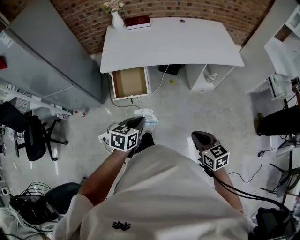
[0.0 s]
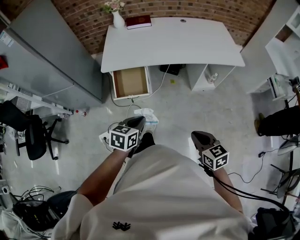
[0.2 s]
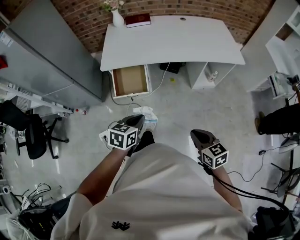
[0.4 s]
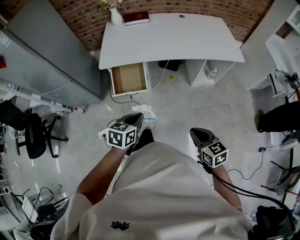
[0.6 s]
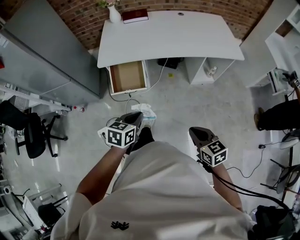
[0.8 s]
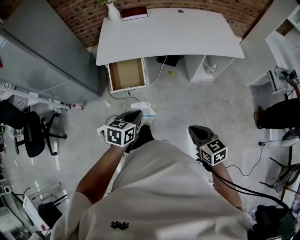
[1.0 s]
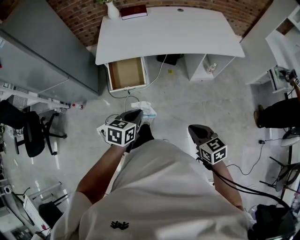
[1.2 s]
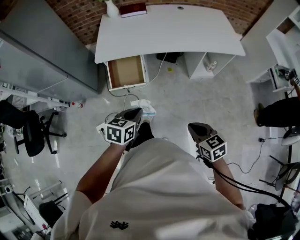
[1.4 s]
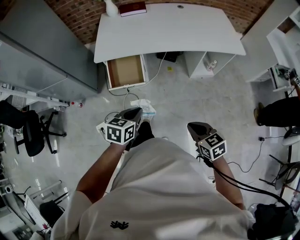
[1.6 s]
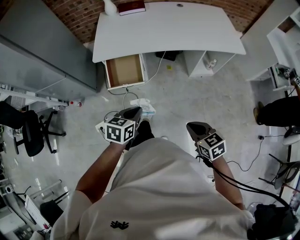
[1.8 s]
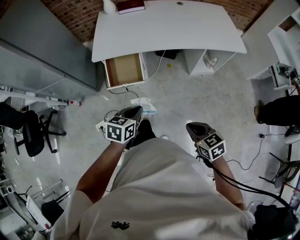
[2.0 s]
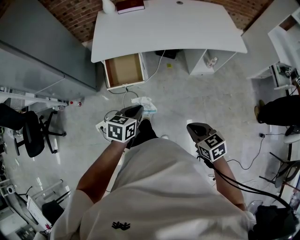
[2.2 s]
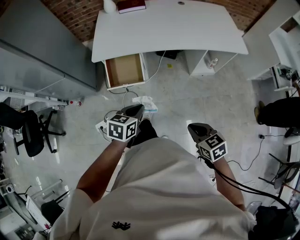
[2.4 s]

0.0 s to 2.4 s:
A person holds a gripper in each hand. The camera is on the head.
0.0 to 1.2 s: The grippers stay close to where they were, moving slightly.
1.2 to 2.4 s: The left gripper is displaced forward by roughly 5 cm.

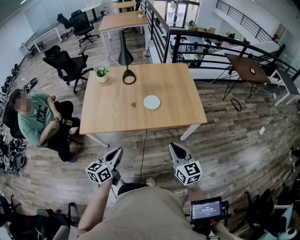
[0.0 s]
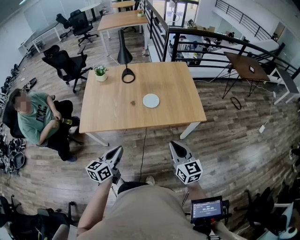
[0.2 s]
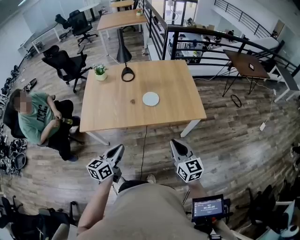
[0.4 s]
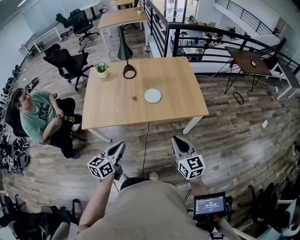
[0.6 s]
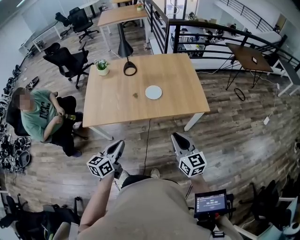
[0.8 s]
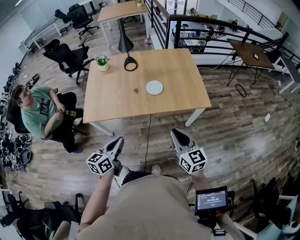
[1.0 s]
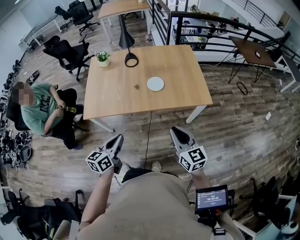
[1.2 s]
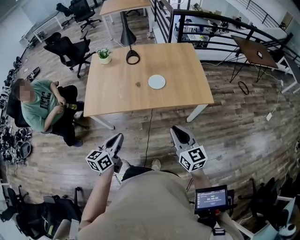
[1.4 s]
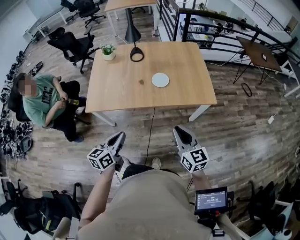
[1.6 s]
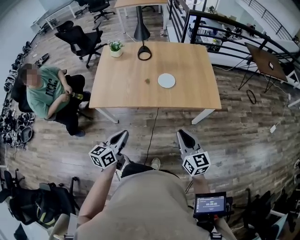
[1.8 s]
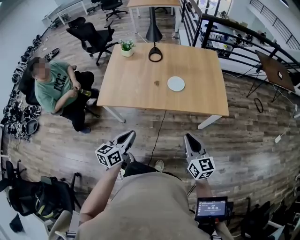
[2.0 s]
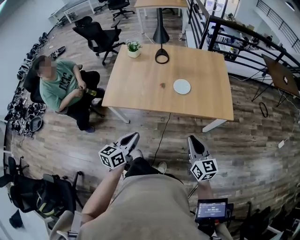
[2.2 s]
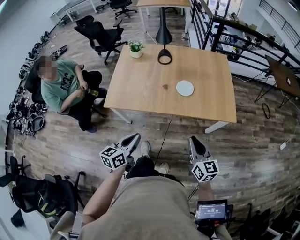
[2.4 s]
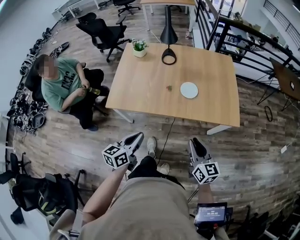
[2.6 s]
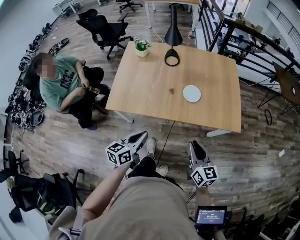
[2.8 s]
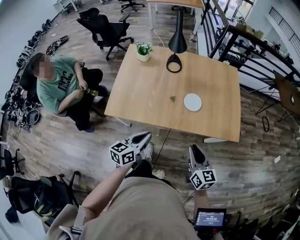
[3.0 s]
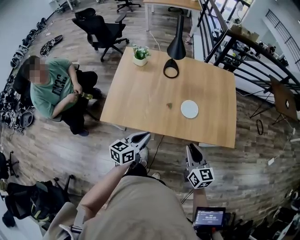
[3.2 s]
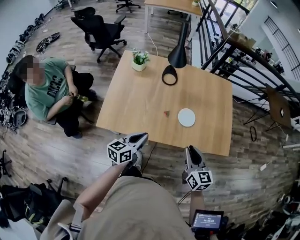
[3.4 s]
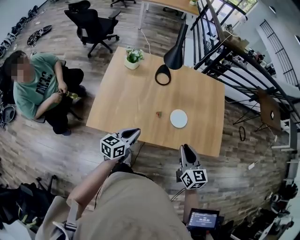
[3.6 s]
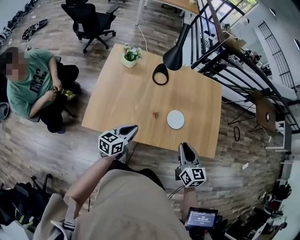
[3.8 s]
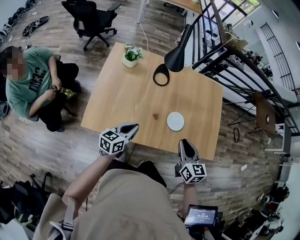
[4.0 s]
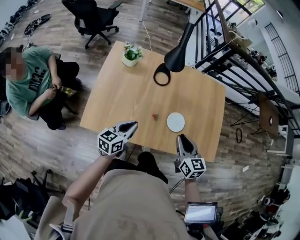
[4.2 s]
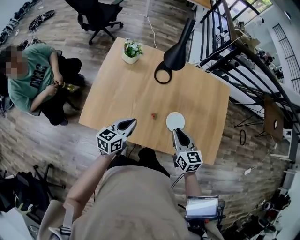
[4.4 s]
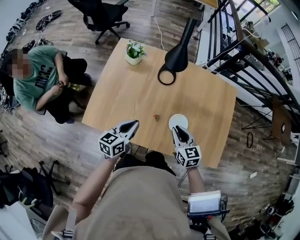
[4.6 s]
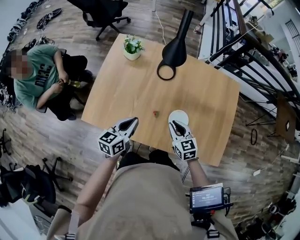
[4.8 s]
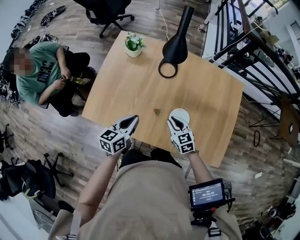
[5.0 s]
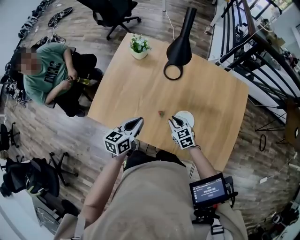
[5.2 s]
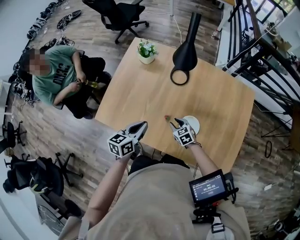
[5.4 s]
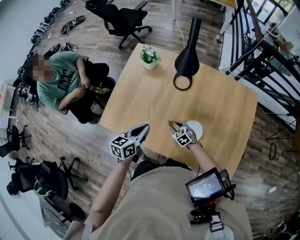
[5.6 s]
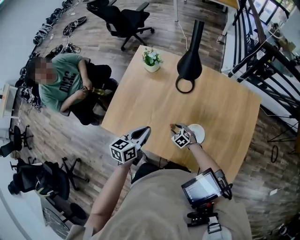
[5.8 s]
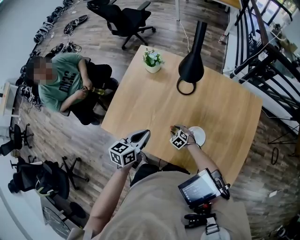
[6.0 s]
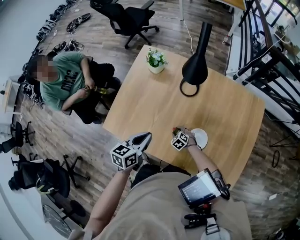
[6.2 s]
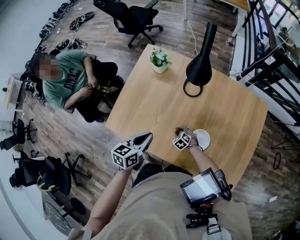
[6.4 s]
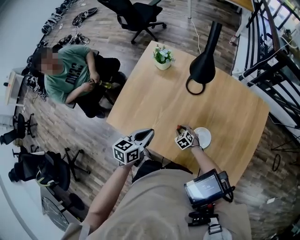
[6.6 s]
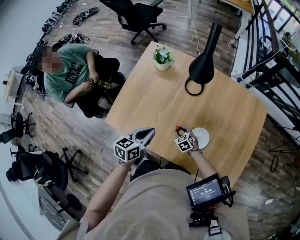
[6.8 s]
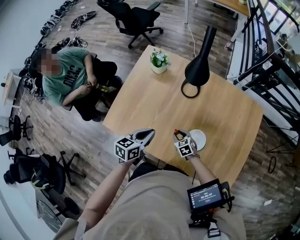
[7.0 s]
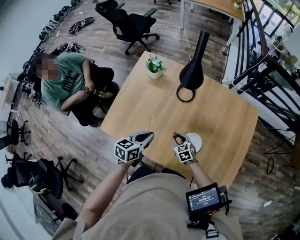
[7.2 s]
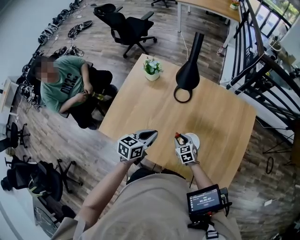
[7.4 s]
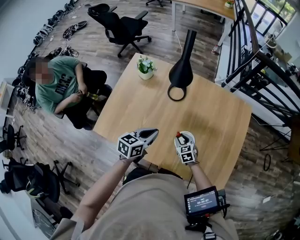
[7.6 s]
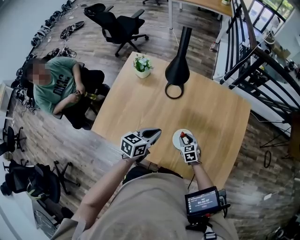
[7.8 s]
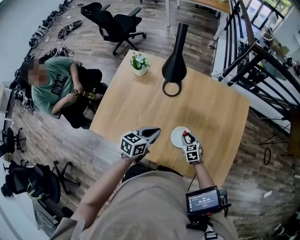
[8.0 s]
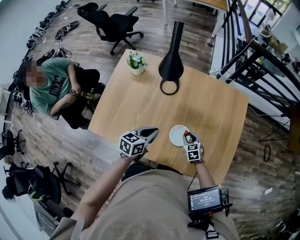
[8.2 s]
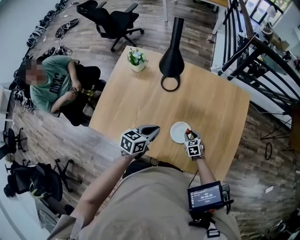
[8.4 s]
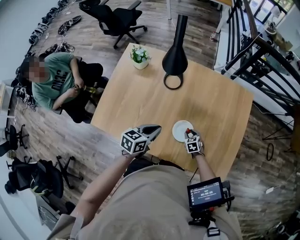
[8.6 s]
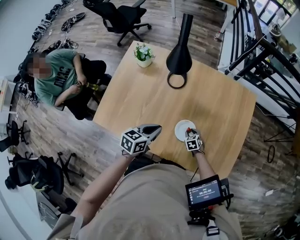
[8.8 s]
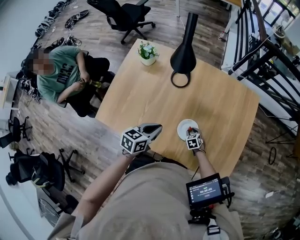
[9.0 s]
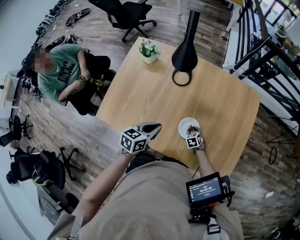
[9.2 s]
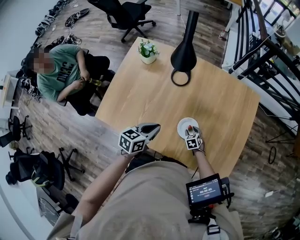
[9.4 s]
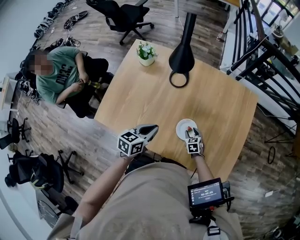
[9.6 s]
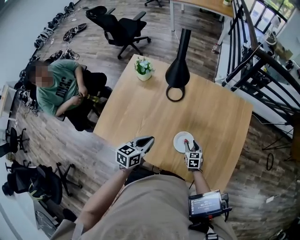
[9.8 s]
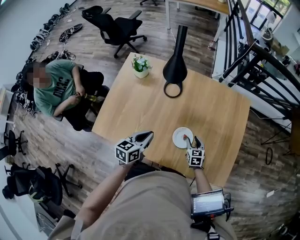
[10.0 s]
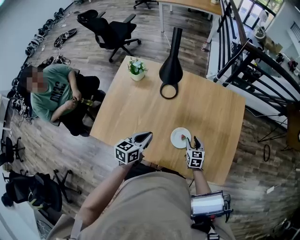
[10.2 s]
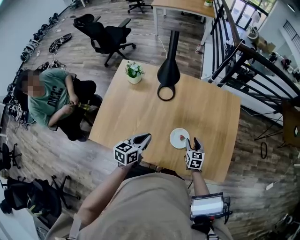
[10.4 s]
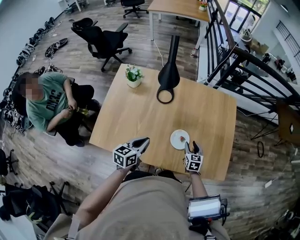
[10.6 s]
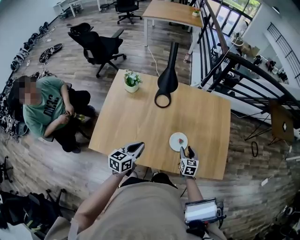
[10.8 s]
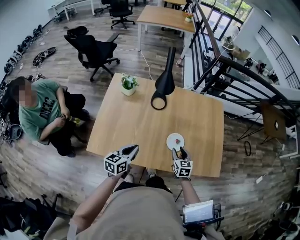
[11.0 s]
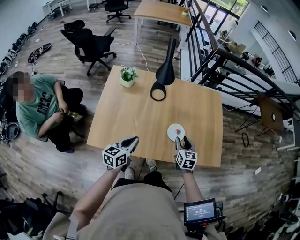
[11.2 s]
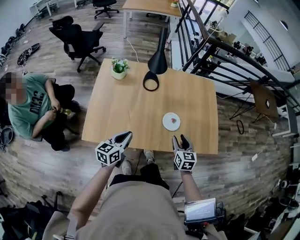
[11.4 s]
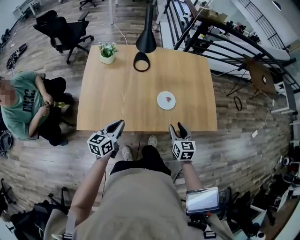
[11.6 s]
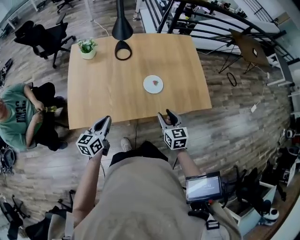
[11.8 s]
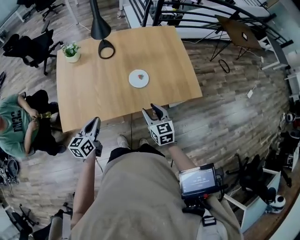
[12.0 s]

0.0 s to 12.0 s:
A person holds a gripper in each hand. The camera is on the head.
0.0 to 1.6 s: The grippers make only small movements.
1.6 to 3.0 s: The right gripper is displaced forward and to the left by approximately 15 cm. The left gripper moves forward, some 15 cm.
3.0 to 4.4 s: The grippers both shift forward by approximately 25 cm.
4.4 to 6.0 s: The right gripper travels downward by approximately 35 cm, tips its fingers downward by roughly 30 degrees, and opens up.
6.0 to 7.6 s: The right gripper travels upward and to the right by some 15 cm, and swivels roughly 30 degrees. The left gripper travels to the right by about 10 cm.
7.6 to 9.0 s: The right gripper moves downward and to the right, about 15 cm.
9.0 to 10.4 s: The right gripper travels upward by some 20 cm, and changes its angle by approximately 40 degrees.
10.4 to 12.0 s: The right gripper moves backward and upward, about 30 cm; the left gripper is displaced backward by approximately 20 cm.

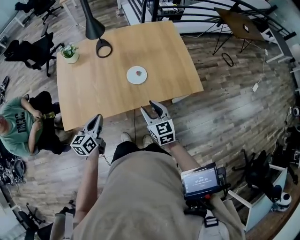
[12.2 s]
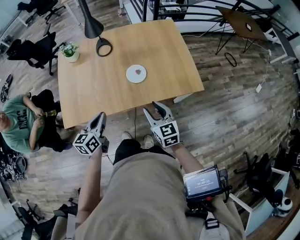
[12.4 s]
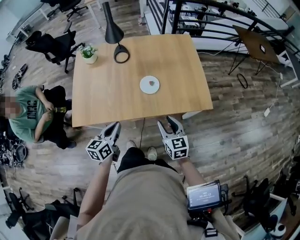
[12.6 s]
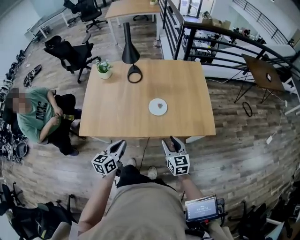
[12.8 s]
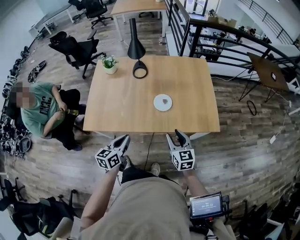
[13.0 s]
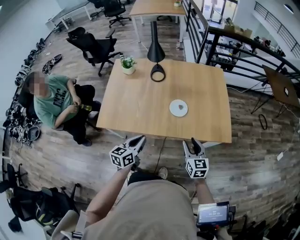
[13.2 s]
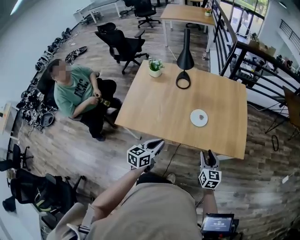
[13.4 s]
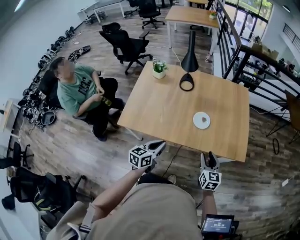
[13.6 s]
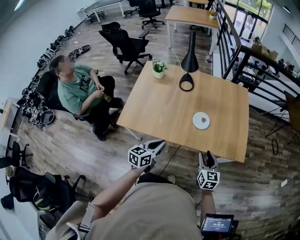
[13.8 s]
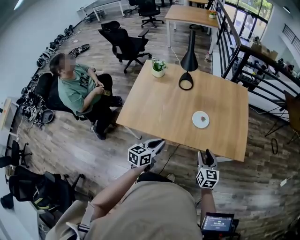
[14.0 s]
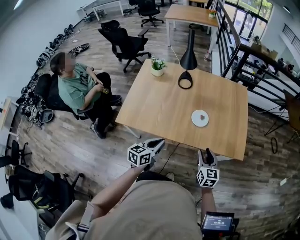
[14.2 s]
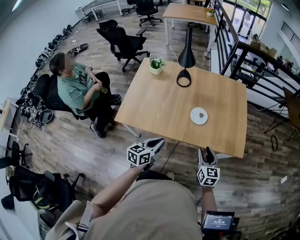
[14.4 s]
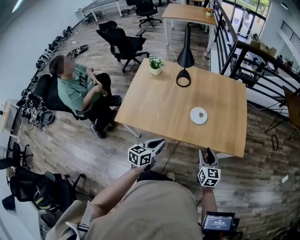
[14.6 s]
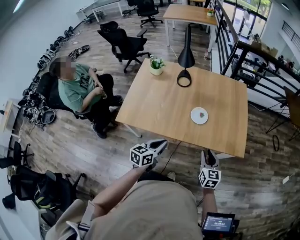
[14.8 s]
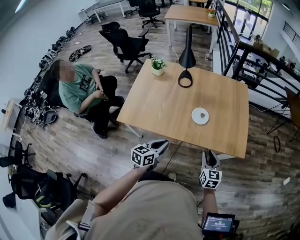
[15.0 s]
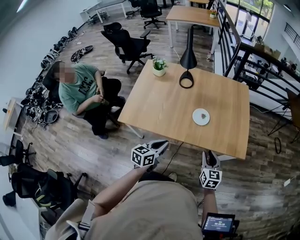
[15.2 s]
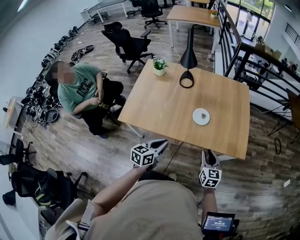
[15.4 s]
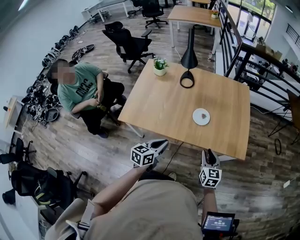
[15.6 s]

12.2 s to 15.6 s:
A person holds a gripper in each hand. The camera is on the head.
12.2 to 13.8 s: The left gripper heads backward, covering some 5 cm.
13.8 to 15.6 s: The grippers make only small movements.

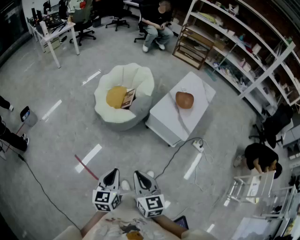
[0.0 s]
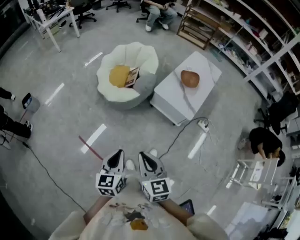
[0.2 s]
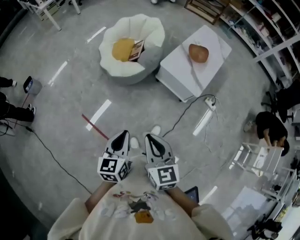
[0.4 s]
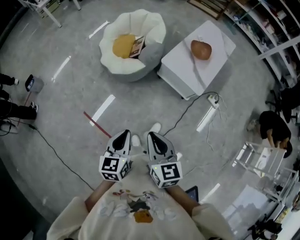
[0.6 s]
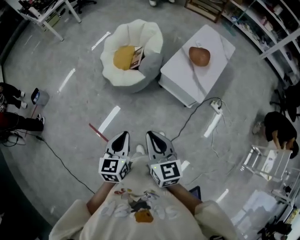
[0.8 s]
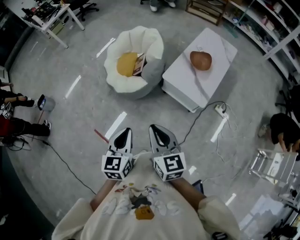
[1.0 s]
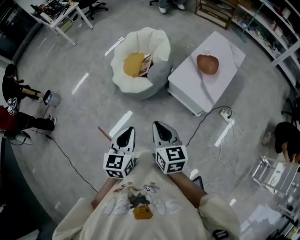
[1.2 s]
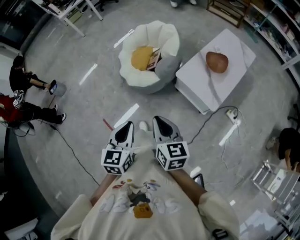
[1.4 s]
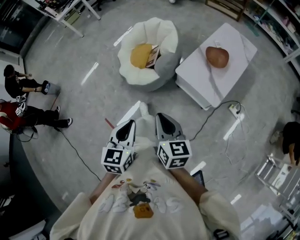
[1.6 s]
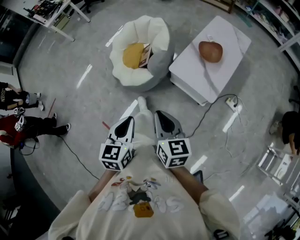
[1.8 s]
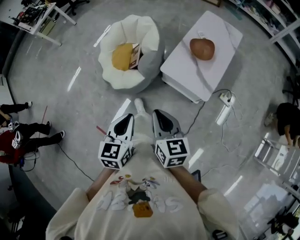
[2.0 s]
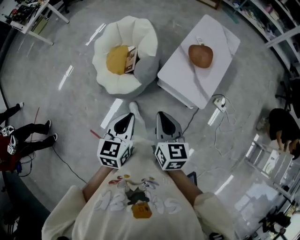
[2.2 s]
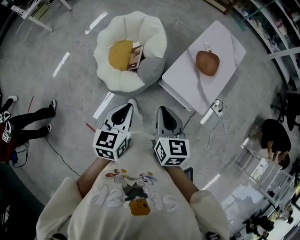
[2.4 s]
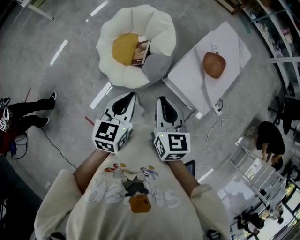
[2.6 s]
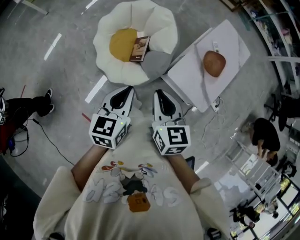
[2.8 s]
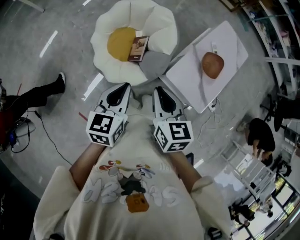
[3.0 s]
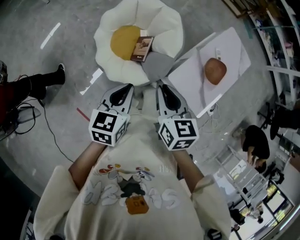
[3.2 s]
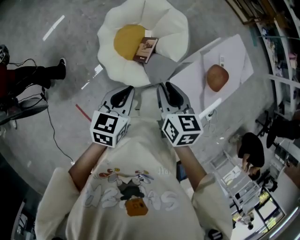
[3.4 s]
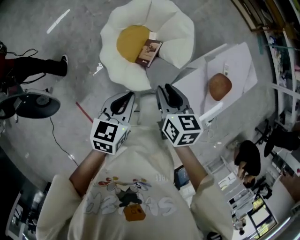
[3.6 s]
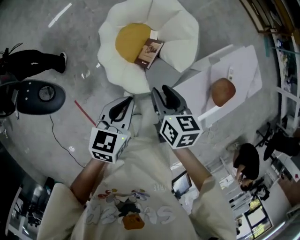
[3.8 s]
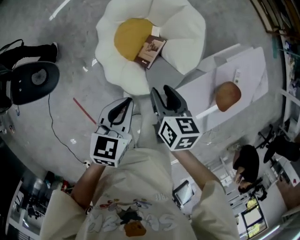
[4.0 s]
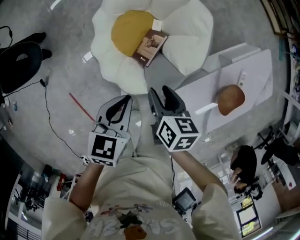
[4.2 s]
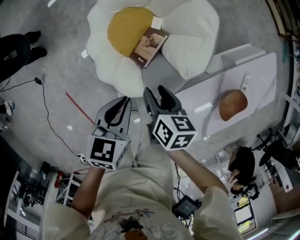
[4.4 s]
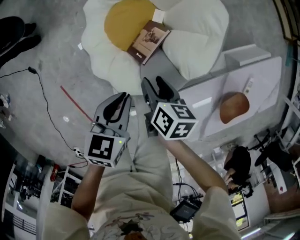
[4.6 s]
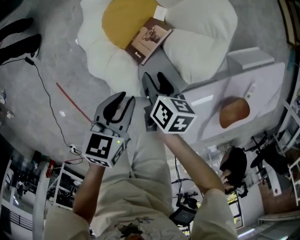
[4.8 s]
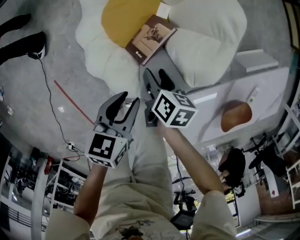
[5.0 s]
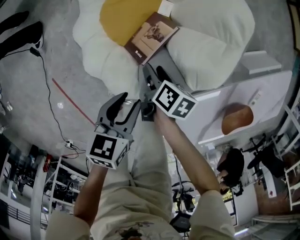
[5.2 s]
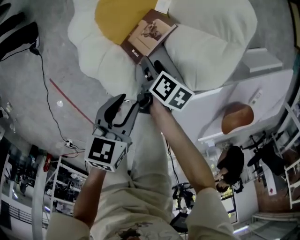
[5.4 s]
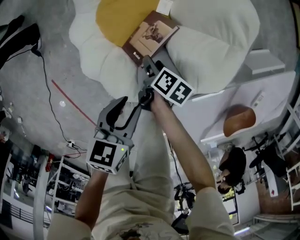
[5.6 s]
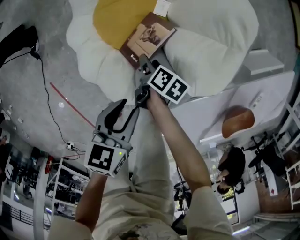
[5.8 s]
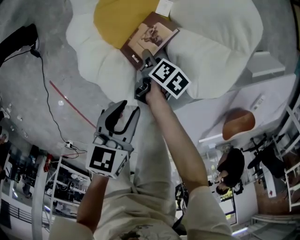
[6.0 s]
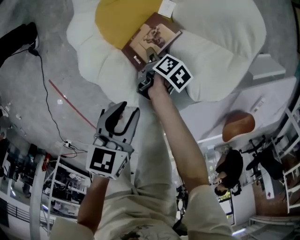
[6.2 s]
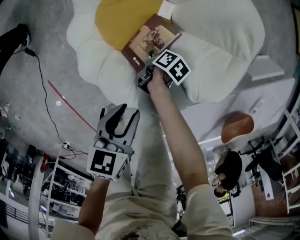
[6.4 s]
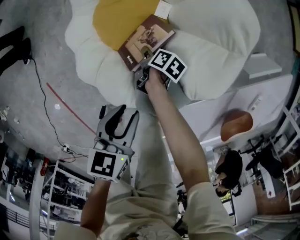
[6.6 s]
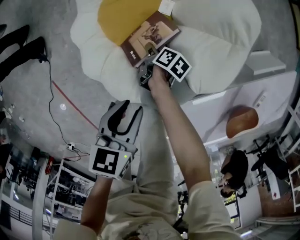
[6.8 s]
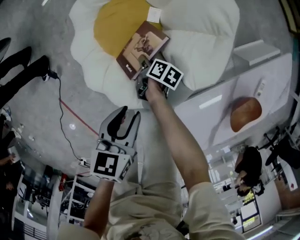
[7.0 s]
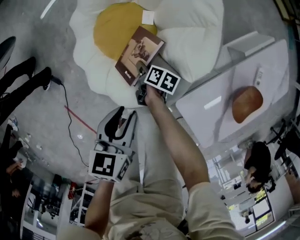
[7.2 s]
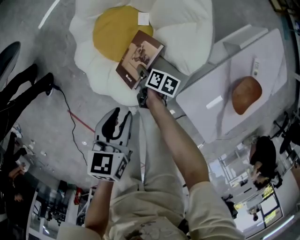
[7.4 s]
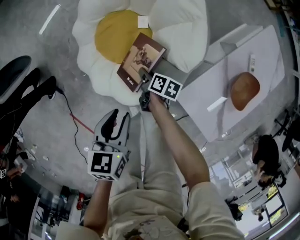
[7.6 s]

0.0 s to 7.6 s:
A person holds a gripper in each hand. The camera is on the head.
0.0 to 1.6 s: Both grippers move forward and to the right, about 25 cm.
1.6 to 3.0 s: Both grippers are carried forward and to the left, some 40 cm.
3.0 to 4.6 s: The grippers both shift downward and forward by some 40 cm. The right gripper rotates approximately 40 degrees, and opens its fingers, while the left gripper turns by about 30 degrees.
4.6 to 6.0 s: The left gripper moves downward, roughly 15 cm, and opens its fingers, while the right gripper heads downward, covering approximately 25 cm, and changes its angle by roughly 30 degrees.
6.0 to 7.6 s: The left gripper moves upward, to the left and backward, approximately 15 cm. The right gripper shifts approximately 10 cm upward and backward, and closes up.
